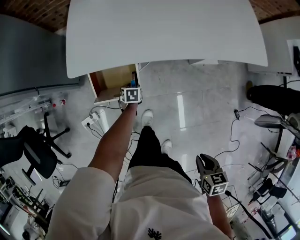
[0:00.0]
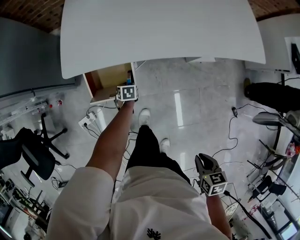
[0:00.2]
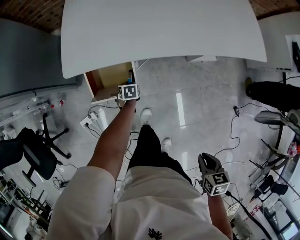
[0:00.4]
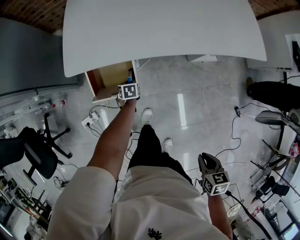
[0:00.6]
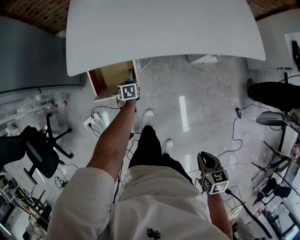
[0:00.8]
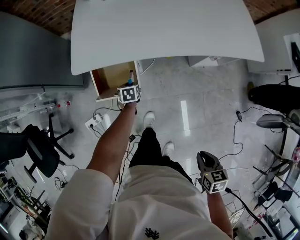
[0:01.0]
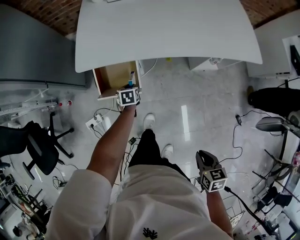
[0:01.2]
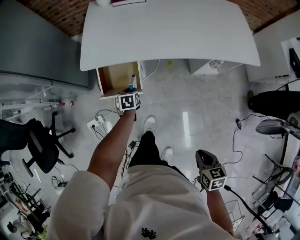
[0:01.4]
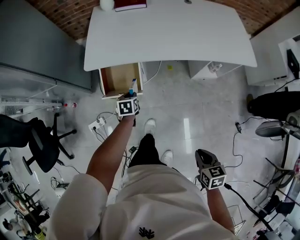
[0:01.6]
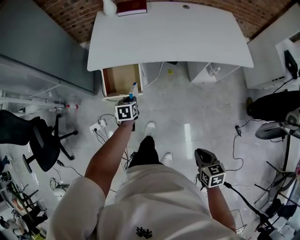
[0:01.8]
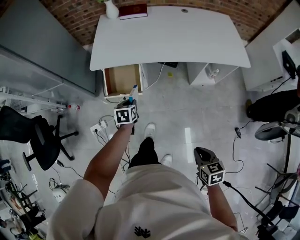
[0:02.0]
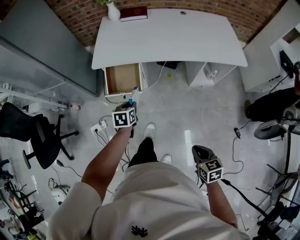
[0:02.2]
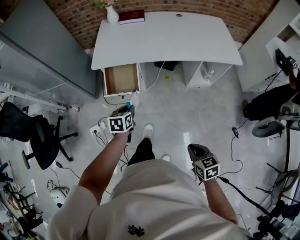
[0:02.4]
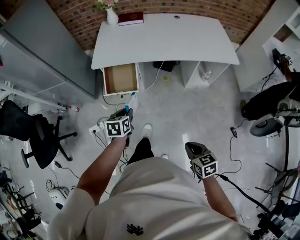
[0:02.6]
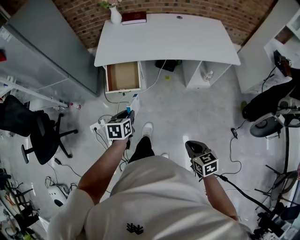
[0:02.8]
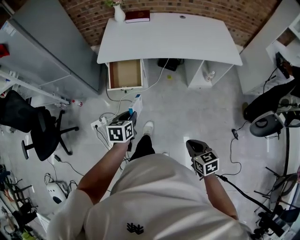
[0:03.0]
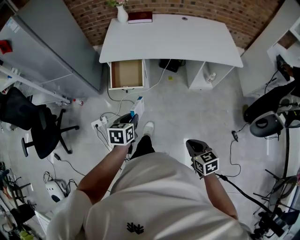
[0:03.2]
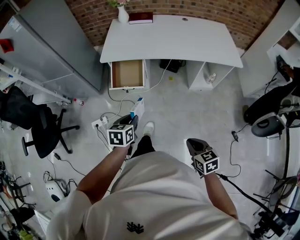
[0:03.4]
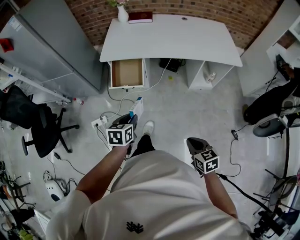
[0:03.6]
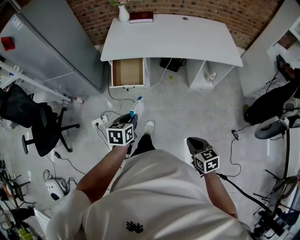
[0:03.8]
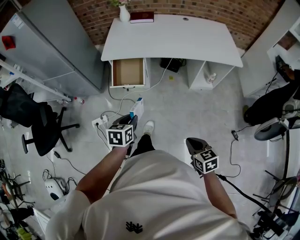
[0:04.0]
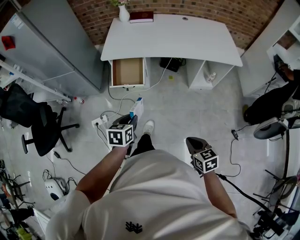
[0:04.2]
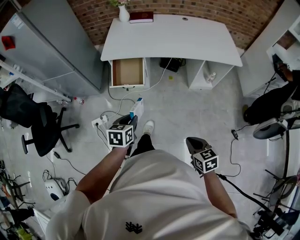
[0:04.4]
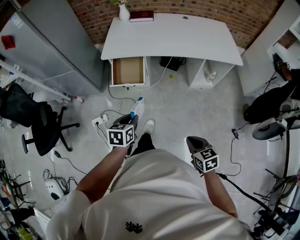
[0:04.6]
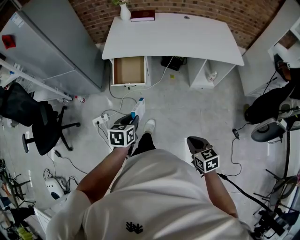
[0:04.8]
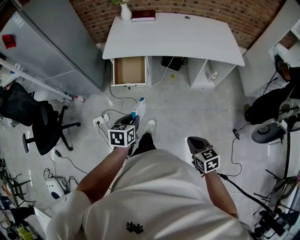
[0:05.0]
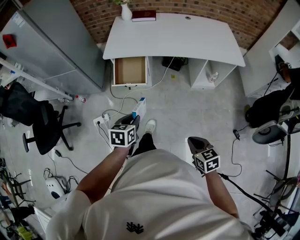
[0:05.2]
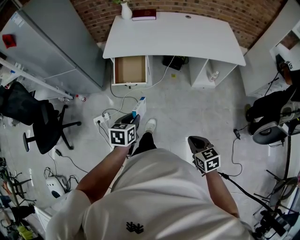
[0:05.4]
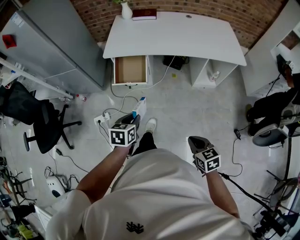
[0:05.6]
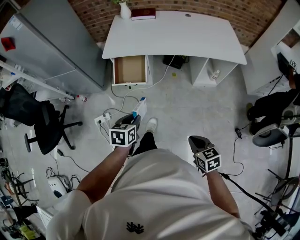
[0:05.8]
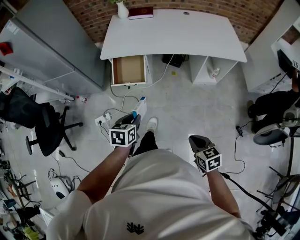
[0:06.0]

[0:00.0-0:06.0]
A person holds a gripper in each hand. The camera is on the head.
0:00.0 to 0:01.6: The left gripper goes about 25 cm upward and backward, while the right gripper travels backward and to the right by about 10 cm.
0:01.6 to 0:03.0: The left gripper heads backward and upward, covering some 35 cm. The right gripper goes approximately 15 cm backward.
0:03.0 to 0:04.4: The left gripper travels backward by some 5 cm.
0:04.4 to 0:06.0: The grippers make only small movements.

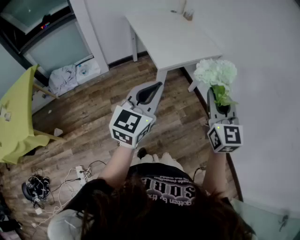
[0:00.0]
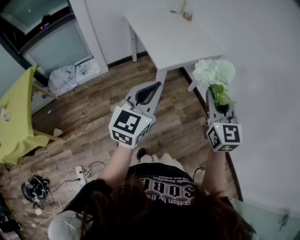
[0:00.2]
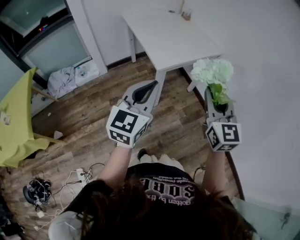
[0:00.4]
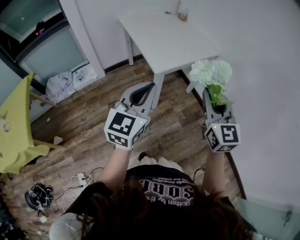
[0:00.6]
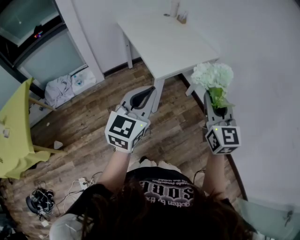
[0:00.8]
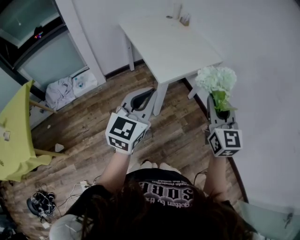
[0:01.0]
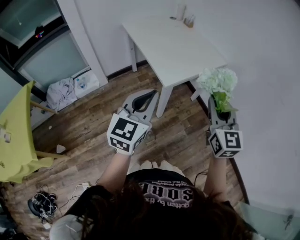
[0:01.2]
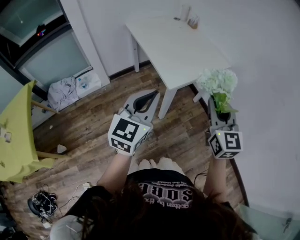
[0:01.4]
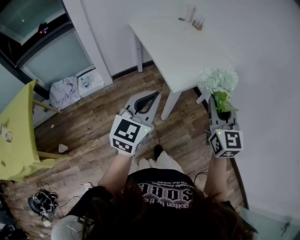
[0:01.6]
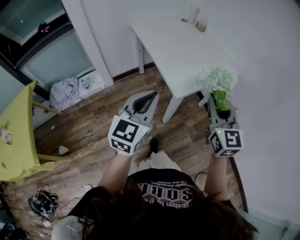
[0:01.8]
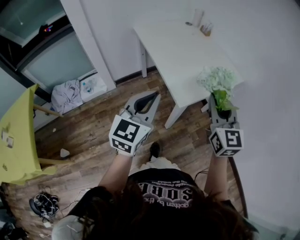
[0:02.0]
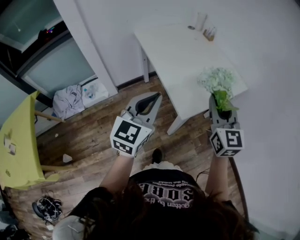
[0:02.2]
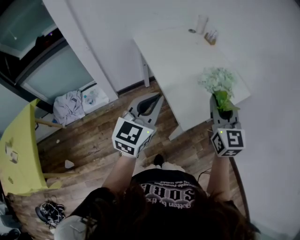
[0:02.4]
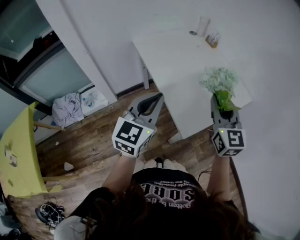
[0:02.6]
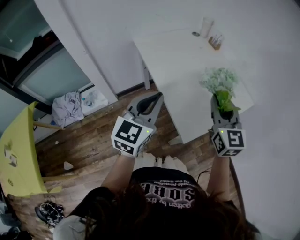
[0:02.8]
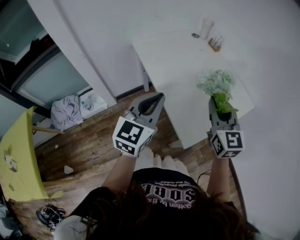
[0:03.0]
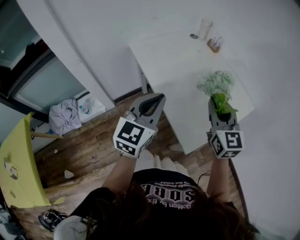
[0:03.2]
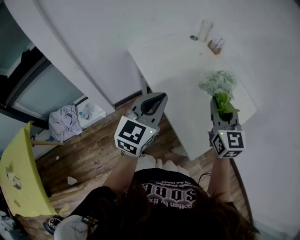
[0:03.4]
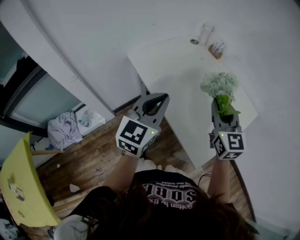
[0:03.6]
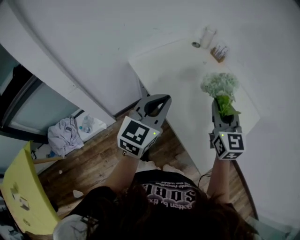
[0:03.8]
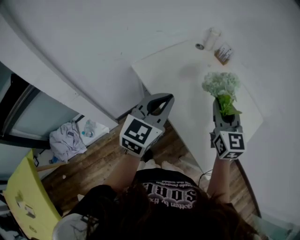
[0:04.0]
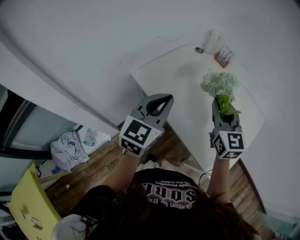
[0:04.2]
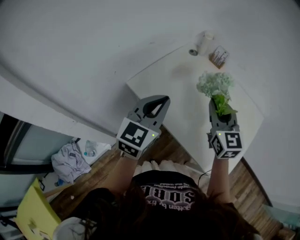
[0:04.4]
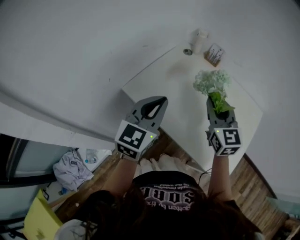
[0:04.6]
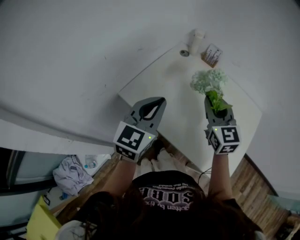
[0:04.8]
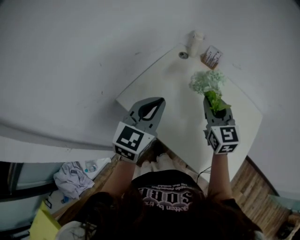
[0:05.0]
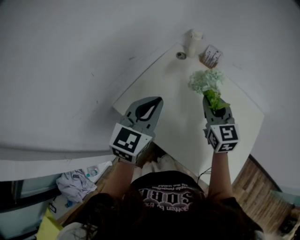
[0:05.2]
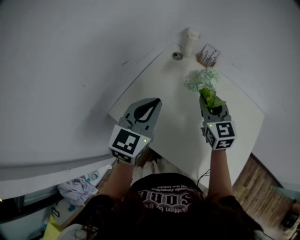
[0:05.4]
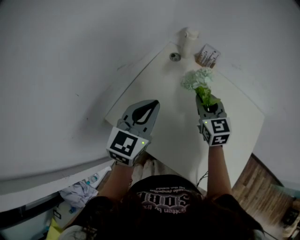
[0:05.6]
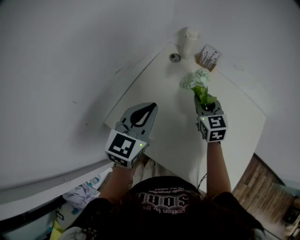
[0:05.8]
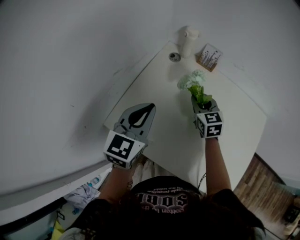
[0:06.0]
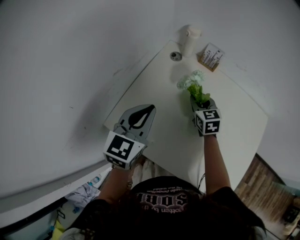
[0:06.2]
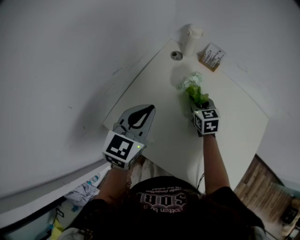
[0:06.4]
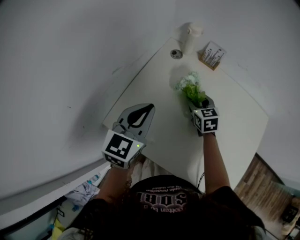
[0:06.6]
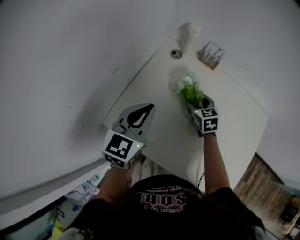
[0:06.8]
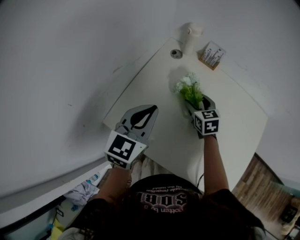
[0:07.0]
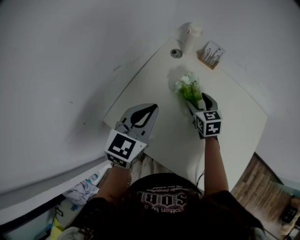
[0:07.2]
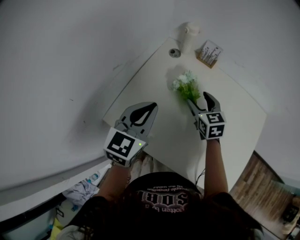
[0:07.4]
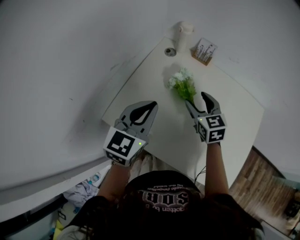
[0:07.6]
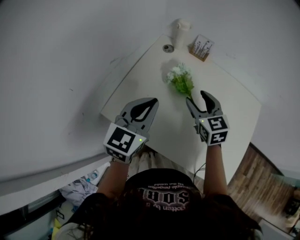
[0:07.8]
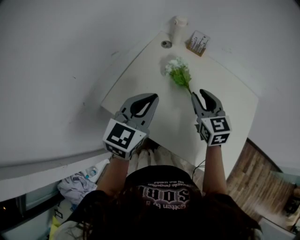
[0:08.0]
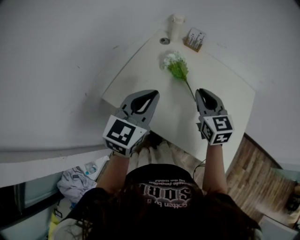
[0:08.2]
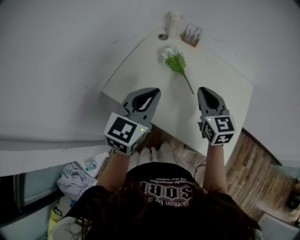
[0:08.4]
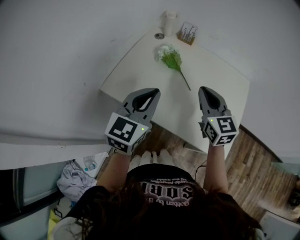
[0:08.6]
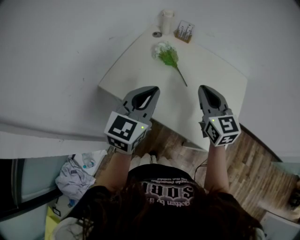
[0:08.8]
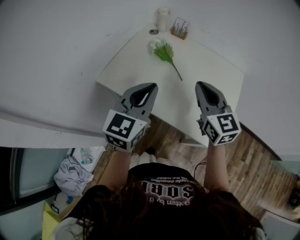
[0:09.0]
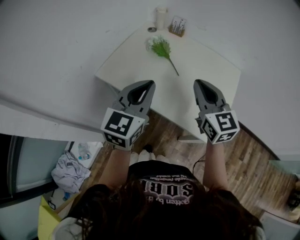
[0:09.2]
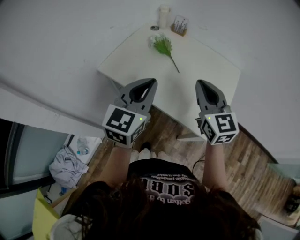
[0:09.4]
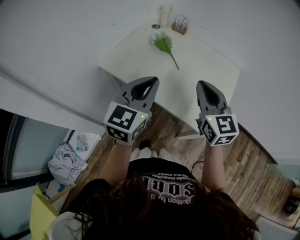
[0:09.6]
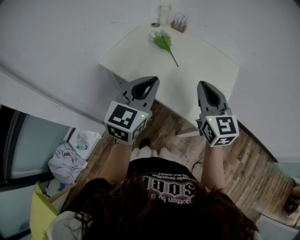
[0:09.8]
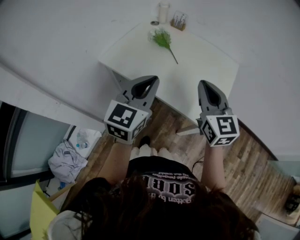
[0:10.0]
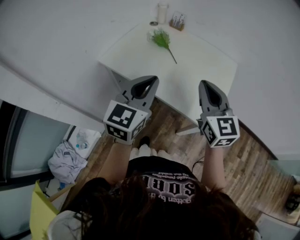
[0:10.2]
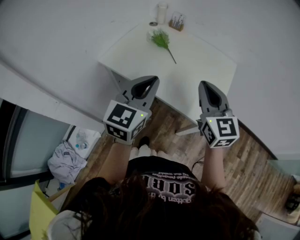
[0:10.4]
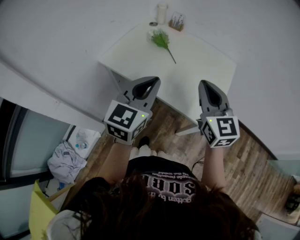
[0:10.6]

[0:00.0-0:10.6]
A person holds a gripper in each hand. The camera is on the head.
0:00.0 to 0:01.6: The left gripper is displaced to the left and forward by some 15 cm. Meanwhile the right gripper goes some 15 cm forward and to the left.
0:01.6 to 0:03.0: The grippers both shift forward by some 30 cm.
0:03.0 to 0:04.6: The grippers both shift forward and to the left by roughly 30 cm. The right gripper rotates roughly 20 degrees, while the left gripper swivels about 20 degrees.
0:04.6 to 0:06.0: The right gripper is displaced forward and downward by about 25 cm, and turns by roughly 20 degrees; the left gripper moves forward, roughly 15 cm.
0:06.0 to 0:07.6: The right gripper is displaced backward by some 5 cm, and opens.
0:07.6 to 0:09.0: The right gripper is displaced backward, upward and to the right by about 30 cm, and closes its fingers. The left gripper is displaced backward and to the right by about 20 cm.
0:09.0 to 0:10.6: The two grippers go approximately 15 cm backward and to the right.

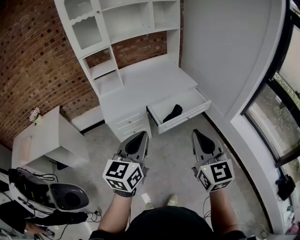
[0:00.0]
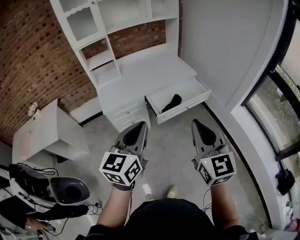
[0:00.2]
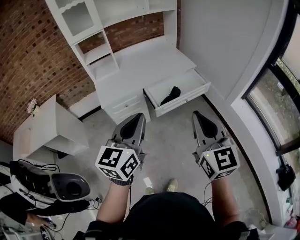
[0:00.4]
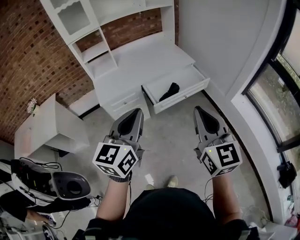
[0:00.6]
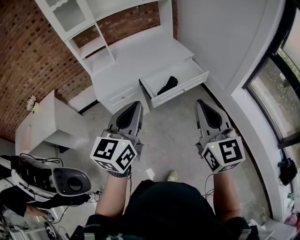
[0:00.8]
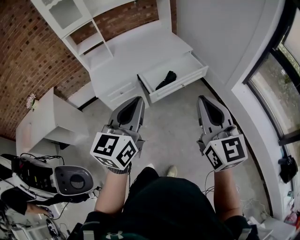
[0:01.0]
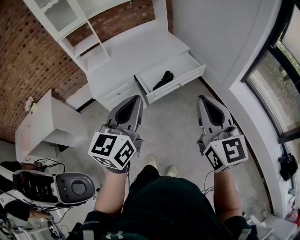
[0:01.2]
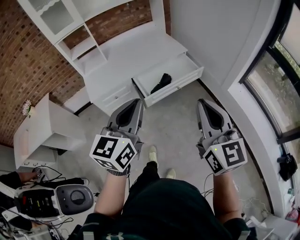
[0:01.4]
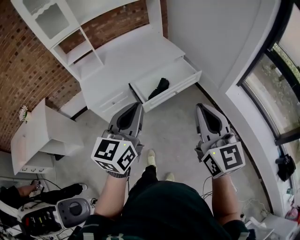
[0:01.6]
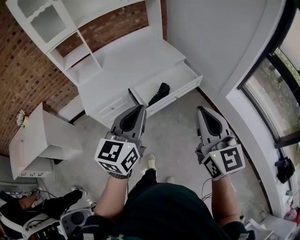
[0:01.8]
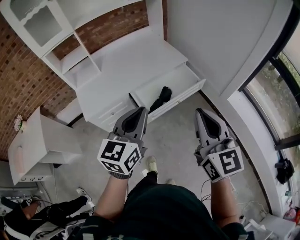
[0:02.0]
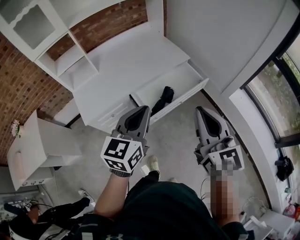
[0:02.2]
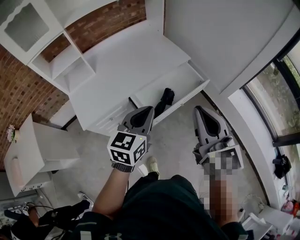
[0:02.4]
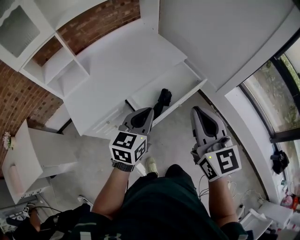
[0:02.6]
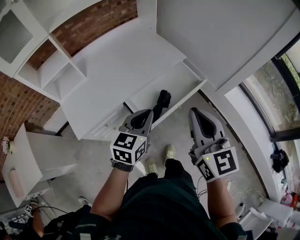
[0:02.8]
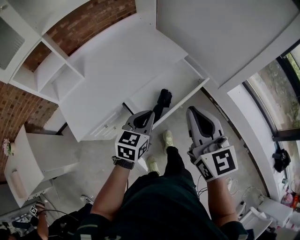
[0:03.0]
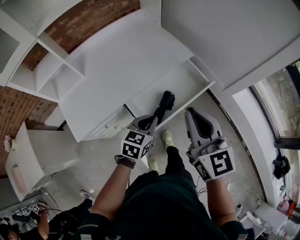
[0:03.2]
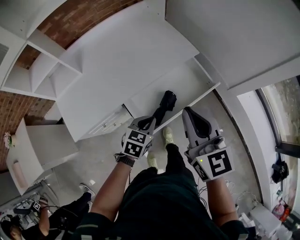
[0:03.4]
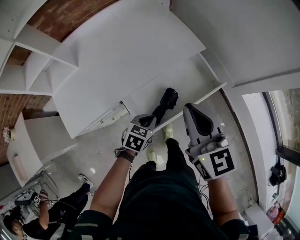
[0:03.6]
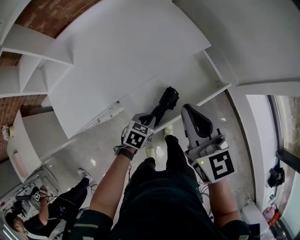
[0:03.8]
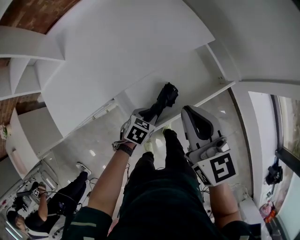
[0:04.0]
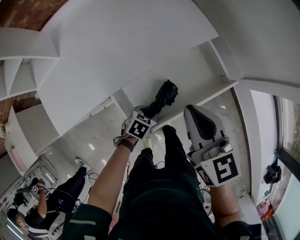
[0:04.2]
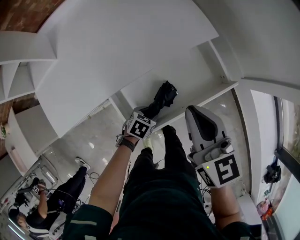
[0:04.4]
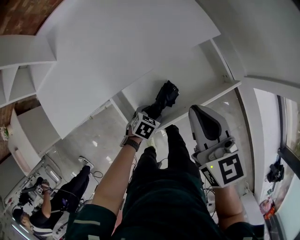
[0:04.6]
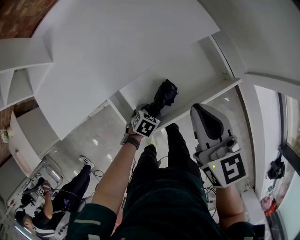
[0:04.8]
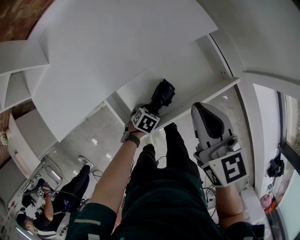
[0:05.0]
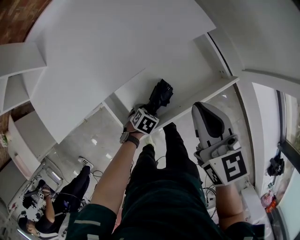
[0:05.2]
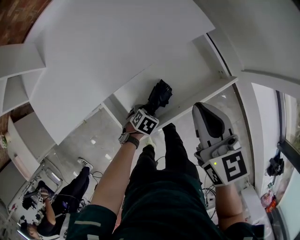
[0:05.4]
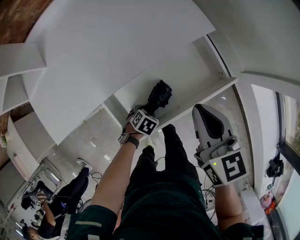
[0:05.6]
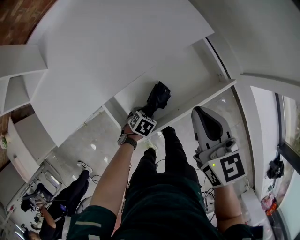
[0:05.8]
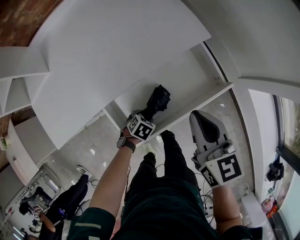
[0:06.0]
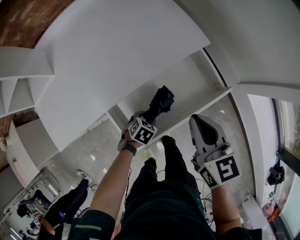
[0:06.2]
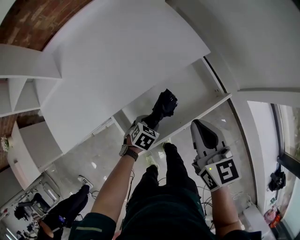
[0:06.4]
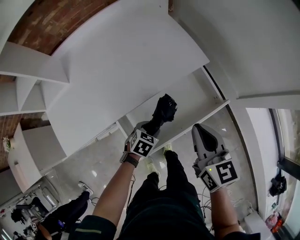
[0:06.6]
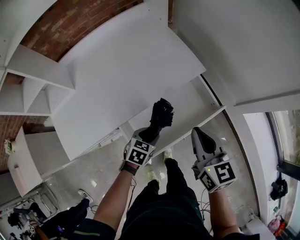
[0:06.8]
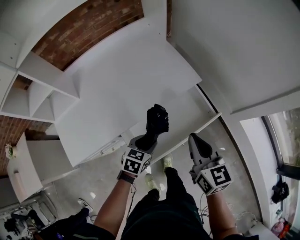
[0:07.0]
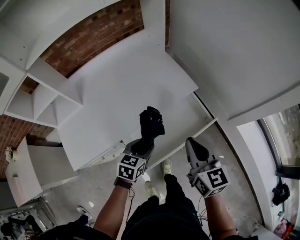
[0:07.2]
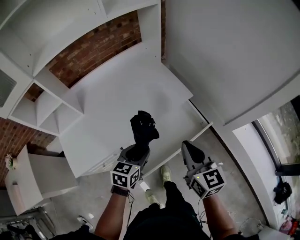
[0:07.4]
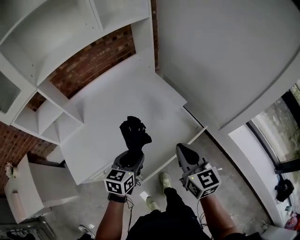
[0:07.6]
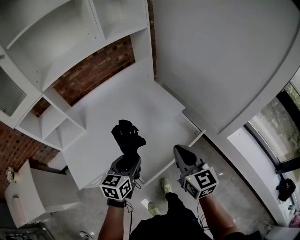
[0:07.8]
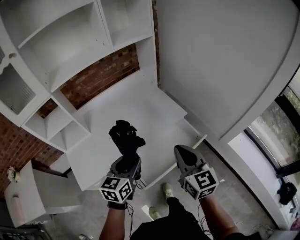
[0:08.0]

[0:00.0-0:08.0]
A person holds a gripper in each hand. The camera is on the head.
0:00.0 to 0:01.6: Both grippers travel together to the right and forward, some 10 cm.
0:01.6 to 0:03.2: The left gripper is displaced forward and downward by about 40 cm, and tilts its fingers some 30 degrees downward, while the right gripper goes roughly 35 cm forward and to the left.
0:03.2 to 0:04.8: The left gripper goes approximately 30 cm downward, tilts its fingers roughly 40 degrees downward, and opens its fingers; the right gripper heads downward and forward, covering some 25 cm, and rotates roughly 20 degrees.
0:04.8 to 0:06.4: The left gripper is displaced upward by some 5 cm.
0:06.4 to 0:08.0: The left gripper moves upward, some 40 cm, and tilts its fingers roughly 50 degrees upward; the right gripper goes roughly 20 cm upward and backward, and rotates some 20 degrees.
